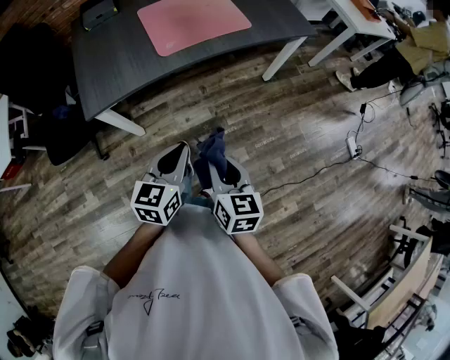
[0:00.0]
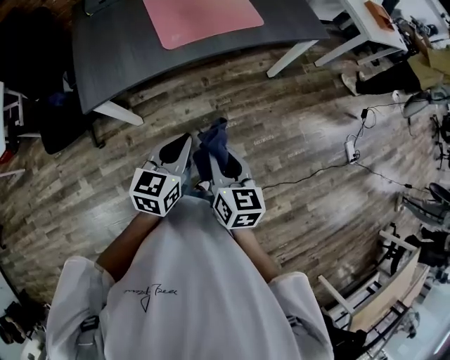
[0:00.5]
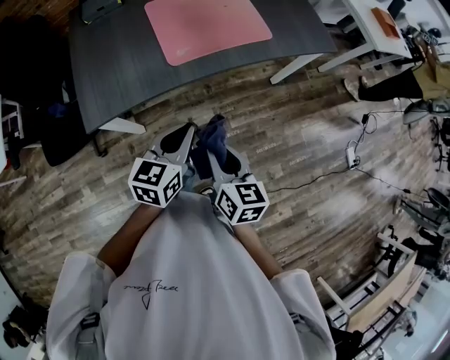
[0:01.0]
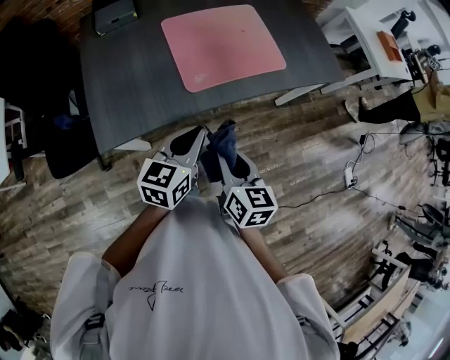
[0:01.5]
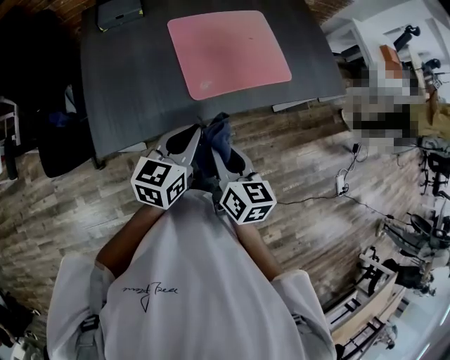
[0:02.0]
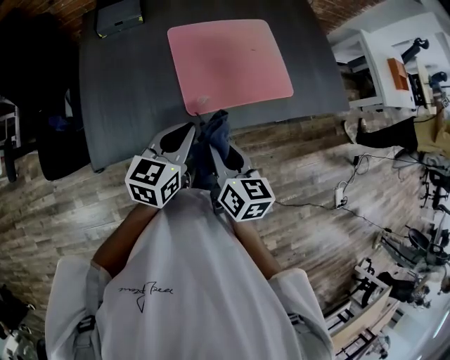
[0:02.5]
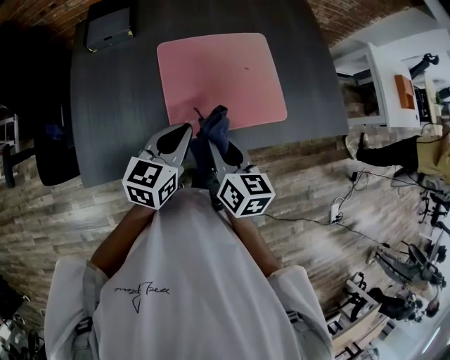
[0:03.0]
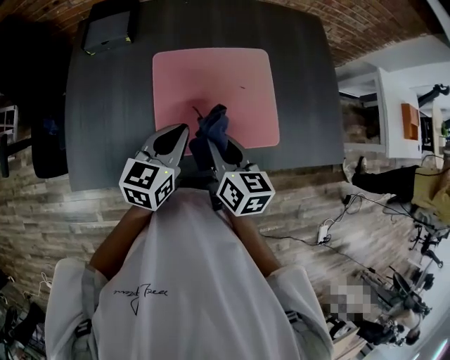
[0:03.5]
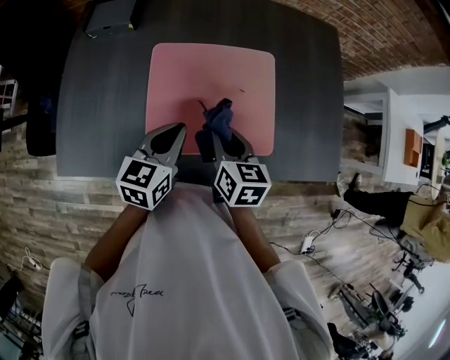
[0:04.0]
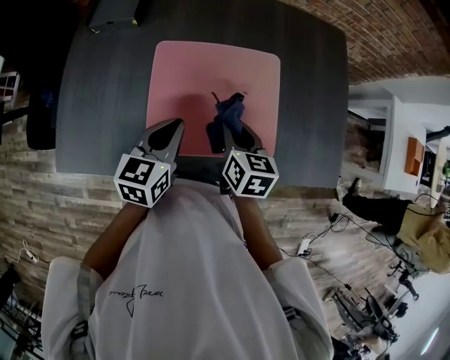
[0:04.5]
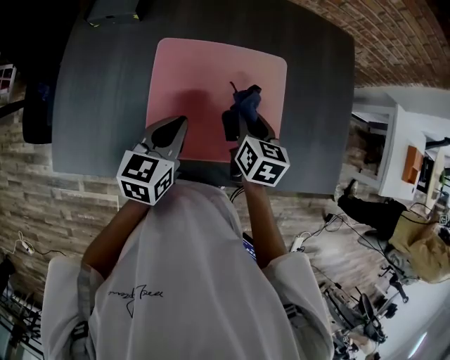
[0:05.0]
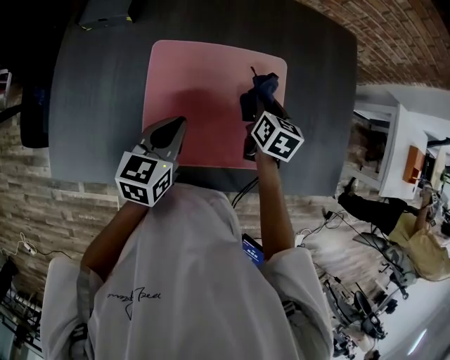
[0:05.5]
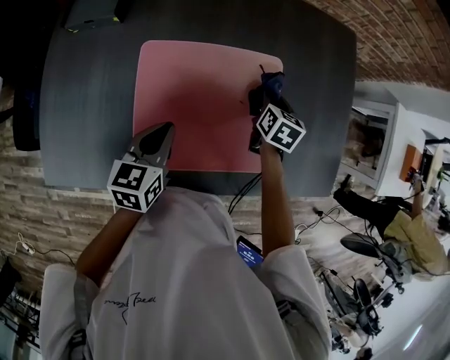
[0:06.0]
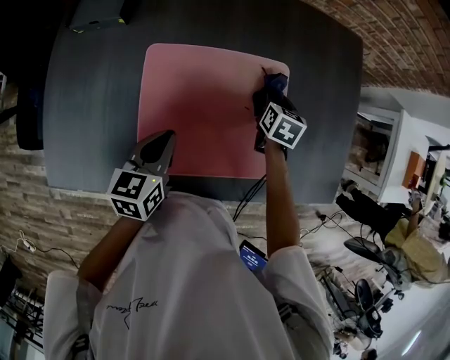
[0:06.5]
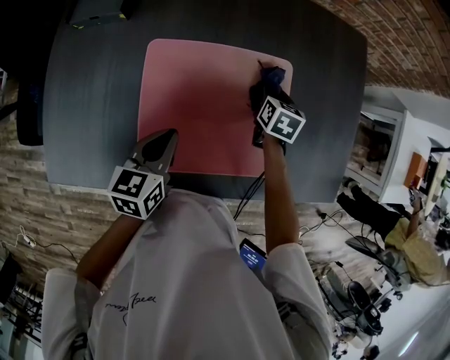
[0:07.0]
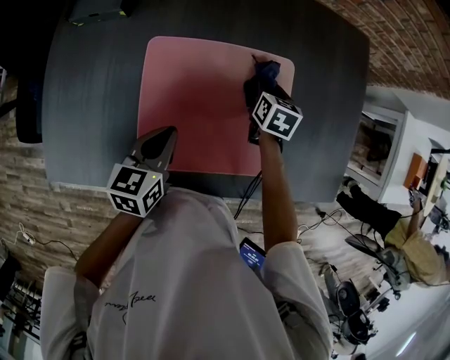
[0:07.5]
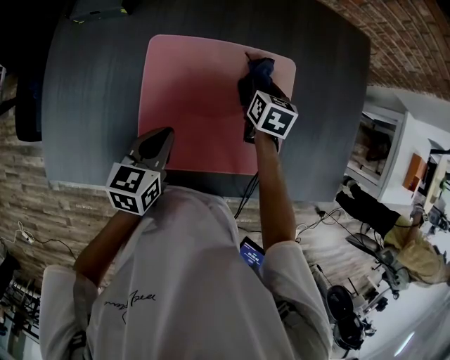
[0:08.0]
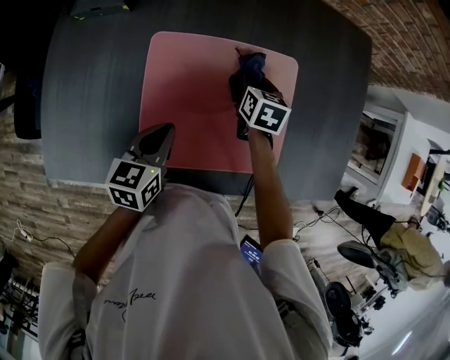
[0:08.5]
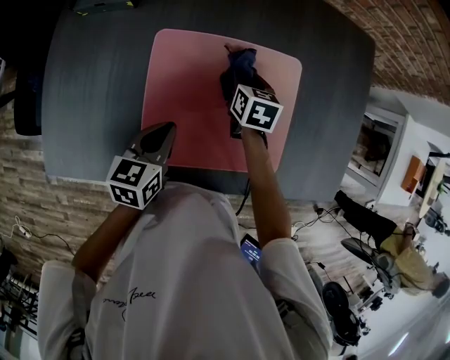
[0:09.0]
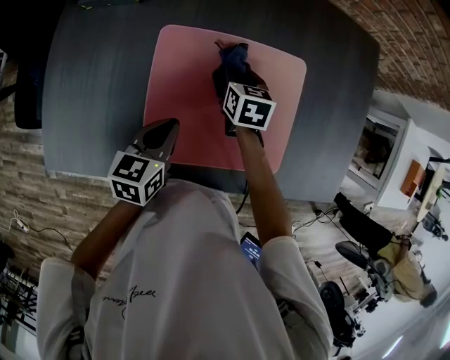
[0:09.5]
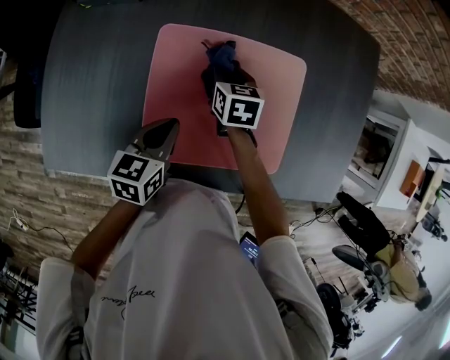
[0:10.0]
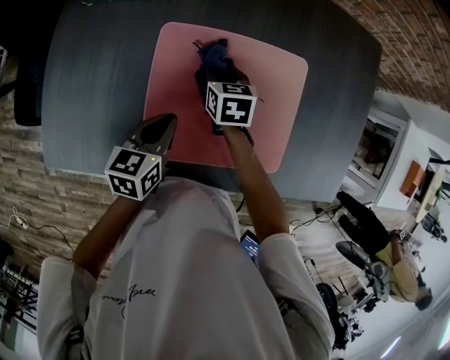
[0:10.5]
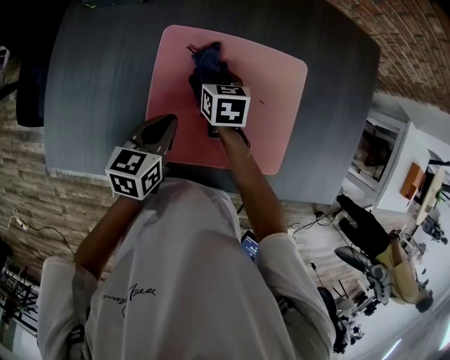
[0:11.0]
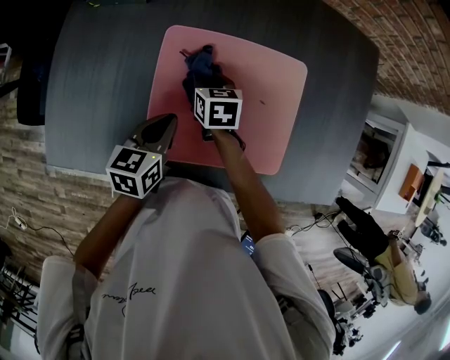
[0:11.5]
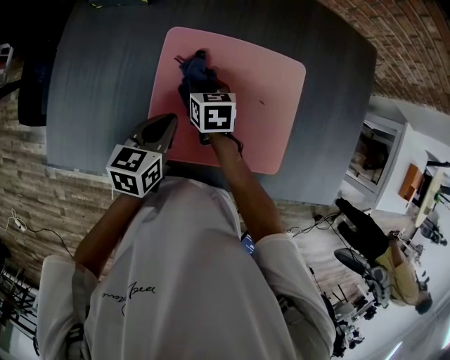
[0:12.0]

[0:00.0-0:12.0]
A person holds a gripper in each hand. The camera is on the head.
0.0 to 2.0 s: The two grippers go approximately 30 cm forward and to the left.
2.0 to 4.0 s: Both grippers travel together forward and to the right, about 30 cm. The left gripper rotates approximately 20 degrees.
4.0 to 6.0 s: The left gripper goes some 10 cm forward and downward. Meanwhile the right gripper heads forward, to the right and downward, covering roughly 30 cm, and swivels some 20 degrees.
6.0 to 8.0 s: The right gripper is displaced to the left by about 5 cm.
8.0 to 10.0 s: The right gripper is displaced to the left by approximately 15 cm.
10.0 to 12.0 s: The right gripper moves to the left, some 5 cm.

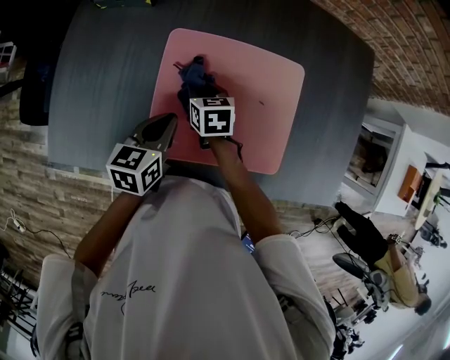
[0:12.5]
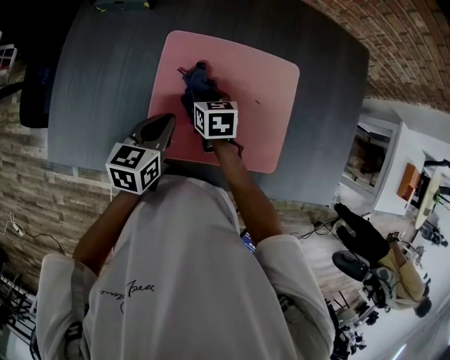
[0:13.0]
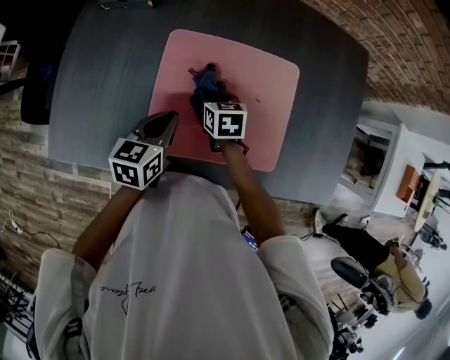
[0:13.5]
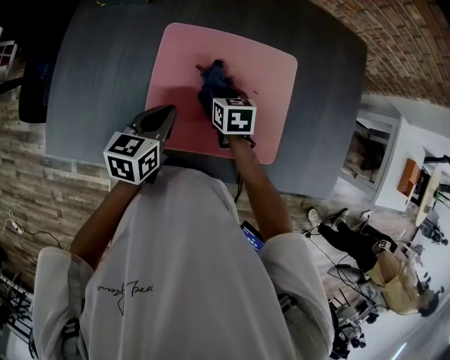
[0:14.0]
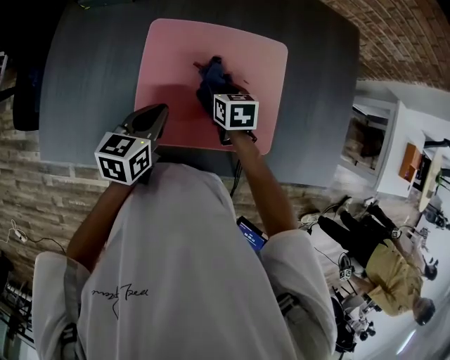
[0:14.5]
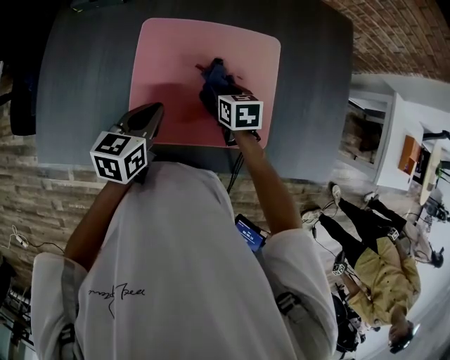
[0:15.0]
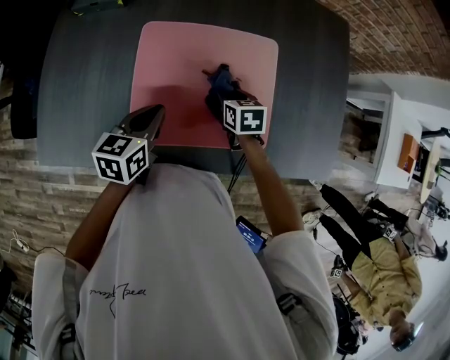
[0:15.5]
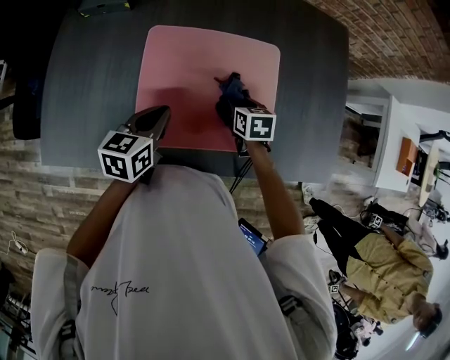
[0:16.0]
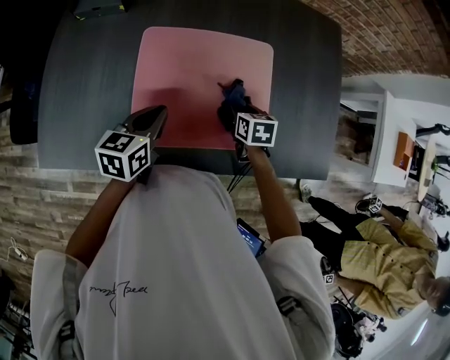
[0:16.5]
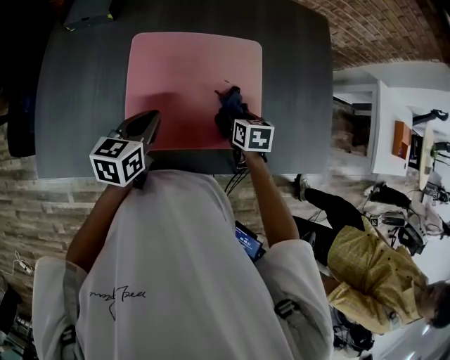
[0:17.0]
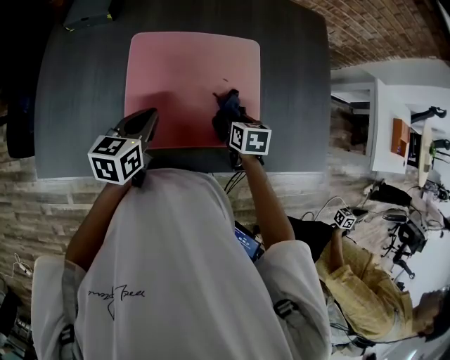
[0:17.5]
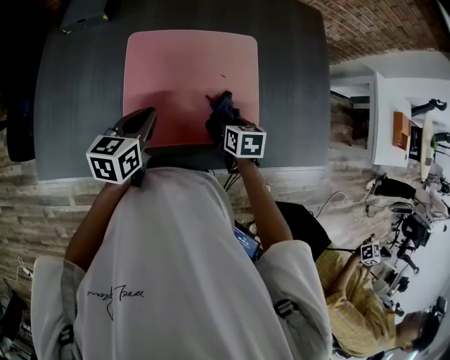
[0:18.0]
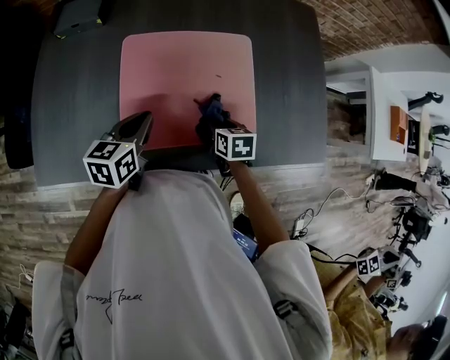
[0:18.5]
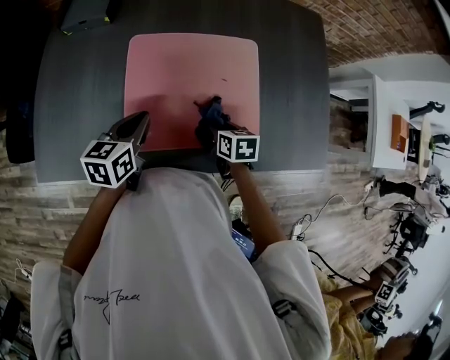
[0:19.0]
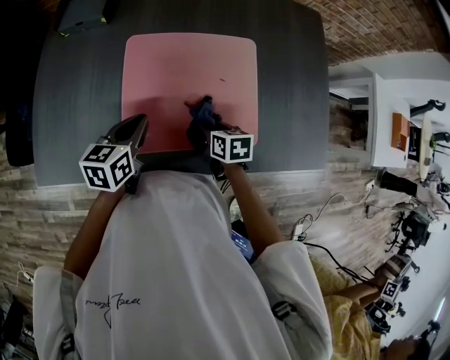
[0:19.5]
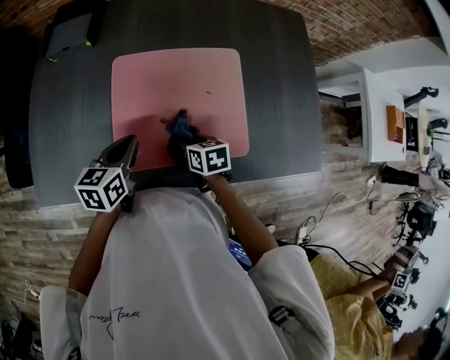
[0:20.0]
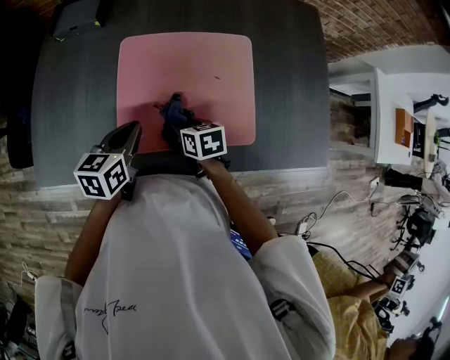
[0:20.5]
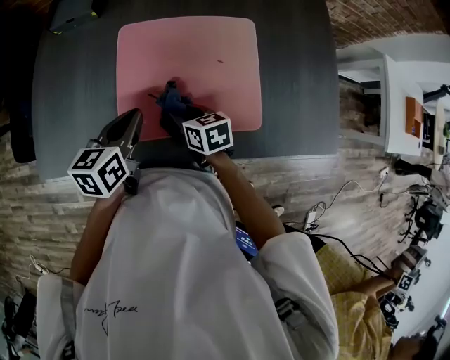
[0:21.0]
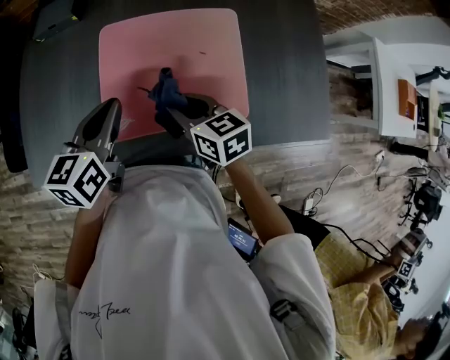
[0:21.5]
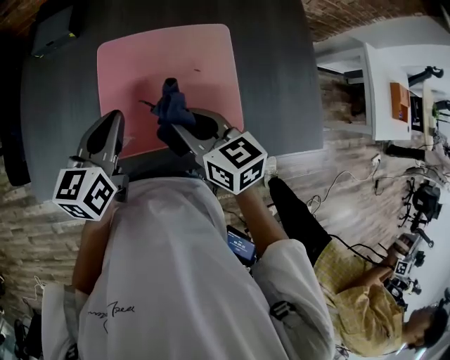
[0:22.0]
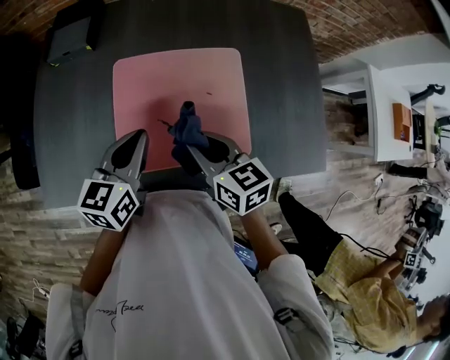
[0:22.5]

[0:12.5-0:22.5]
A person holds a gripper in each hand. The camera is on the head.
12.5 to 14.5 s: The right gripper travels to the right by approximately 10 cm.
14.5 to 16.5 s: The right gripper is displaced to the right by about 10 cm.
16.5 to 18.5 s: The right gripper goes approximately 10 cm backward.
18.5 to 20.5 s: The right gripper heads to the left, covering approximately 10 cm.
20.5 to 22.5 s: The right gripper shifts about 20 cm upward, and swivels about 20 degrees. Meanwhile the left gripper goes some 10 cm upward.

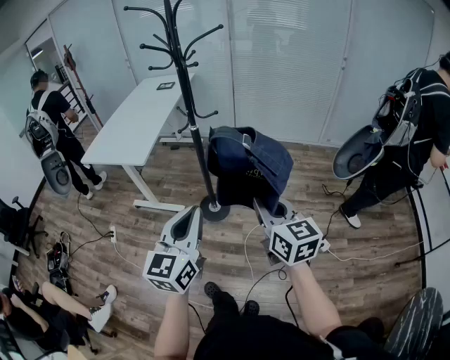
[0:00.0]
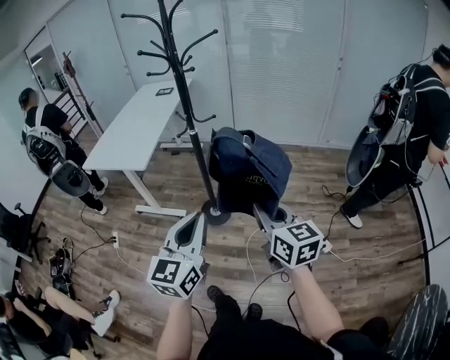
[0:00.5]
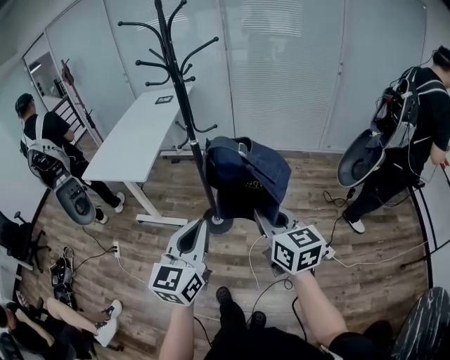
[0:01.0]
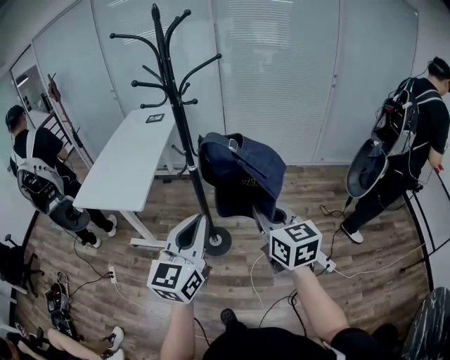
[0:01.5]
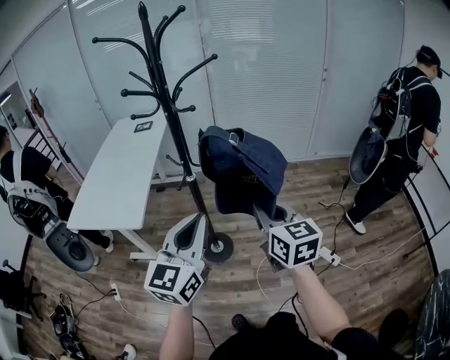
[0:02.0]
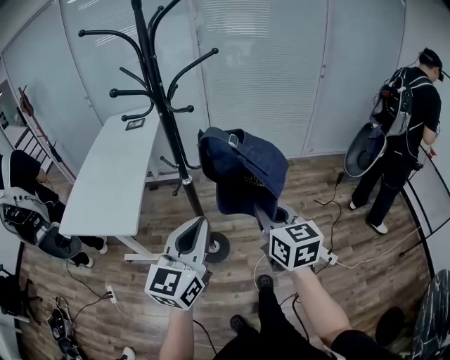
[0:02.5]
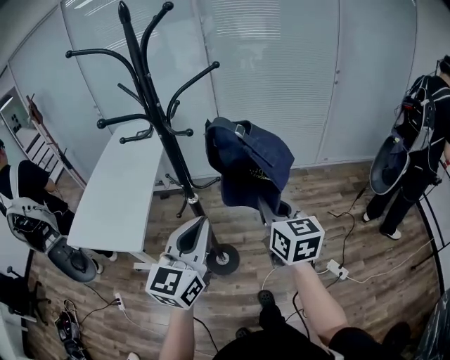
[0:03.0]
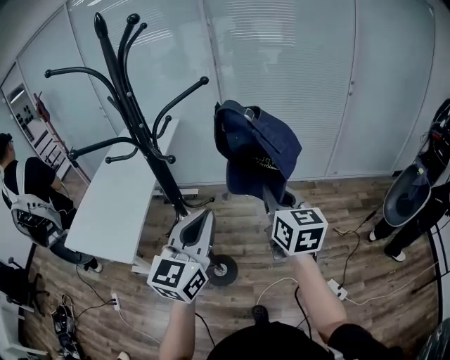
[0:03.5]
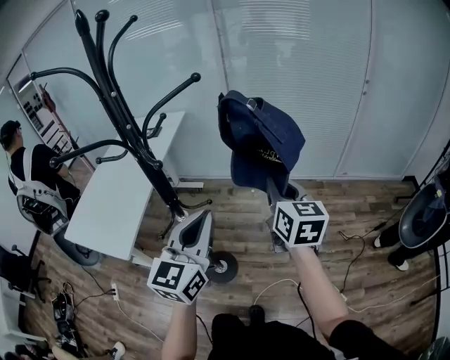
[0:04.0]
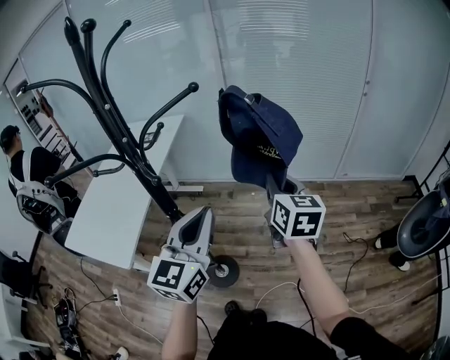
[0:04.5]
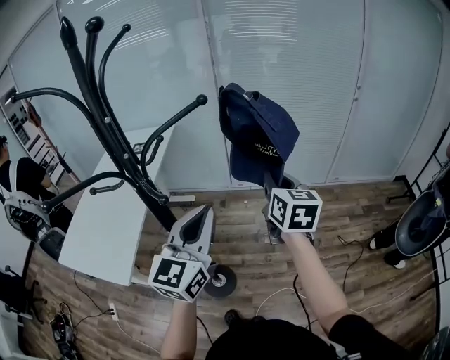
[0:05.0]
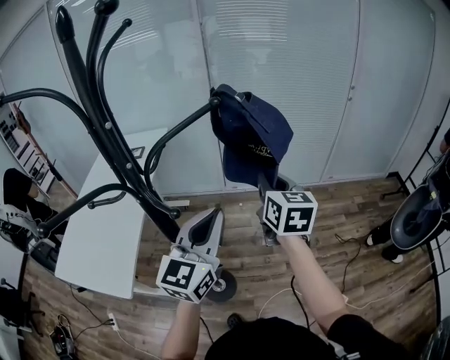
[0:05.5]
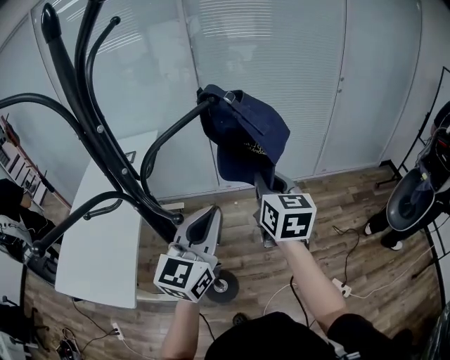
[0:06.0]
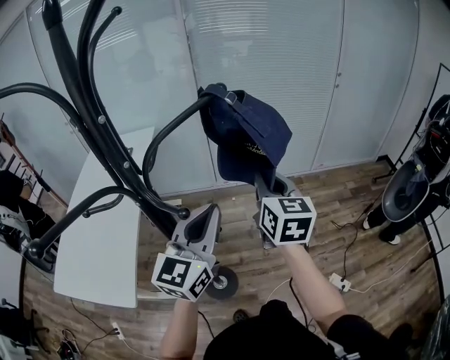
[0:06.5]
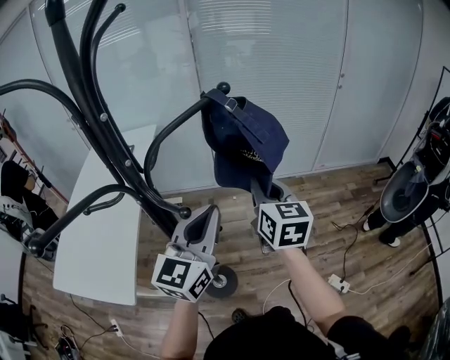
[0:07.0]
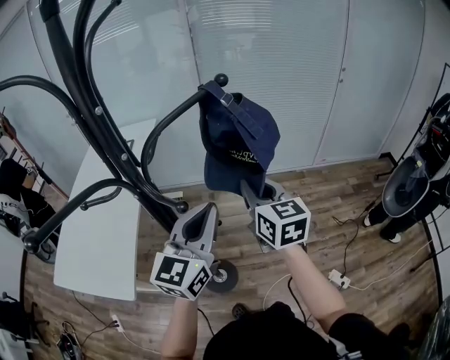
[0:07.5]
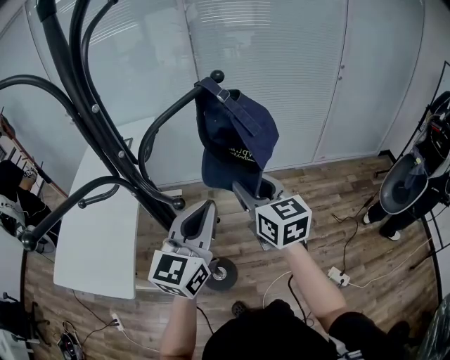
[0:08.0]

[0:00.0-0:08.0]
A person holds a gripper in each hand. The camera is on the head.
0.0 to 2.0 s: The two grippers go approximately 15 cm forward.
2.0 to 4.0 s: The two grippers go some 25 cm forward.
4.0 to 6.0 s: The left gripper heads forward, covering about 10 cm. The right gripper travels forward and to the left by approximately 10 cm.
6.0 to 8.0 s: The right gripper changes place by approximately 5 cm, and opens its fingers.
